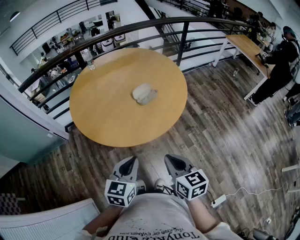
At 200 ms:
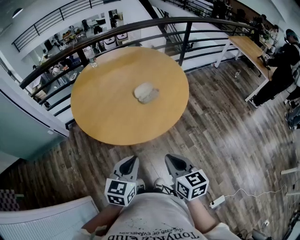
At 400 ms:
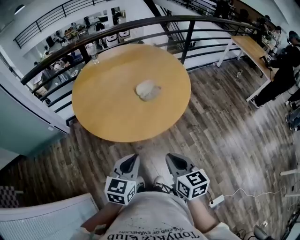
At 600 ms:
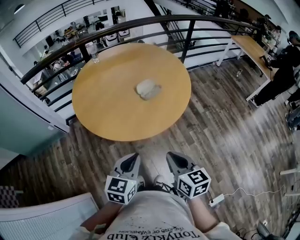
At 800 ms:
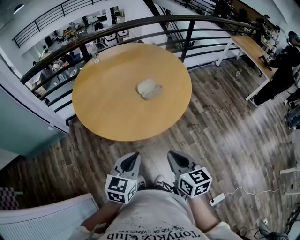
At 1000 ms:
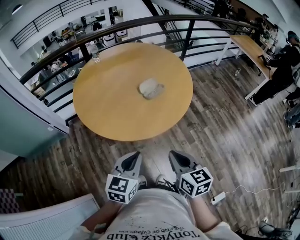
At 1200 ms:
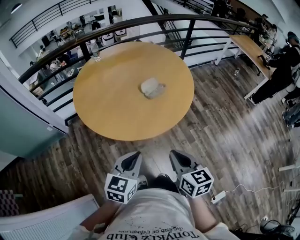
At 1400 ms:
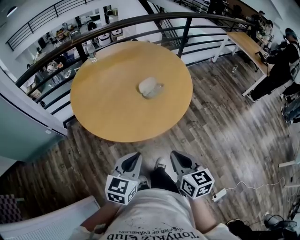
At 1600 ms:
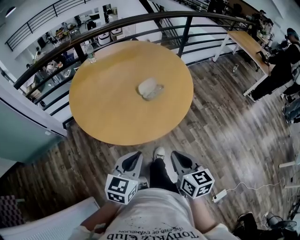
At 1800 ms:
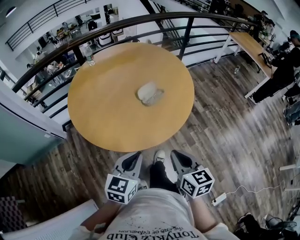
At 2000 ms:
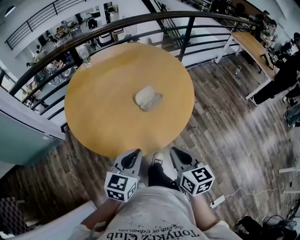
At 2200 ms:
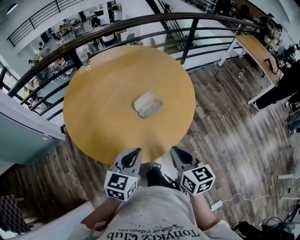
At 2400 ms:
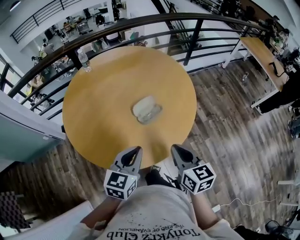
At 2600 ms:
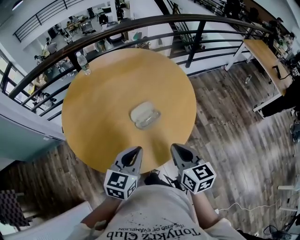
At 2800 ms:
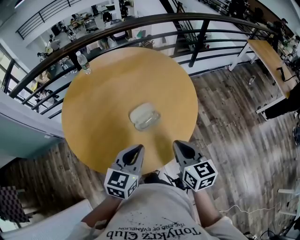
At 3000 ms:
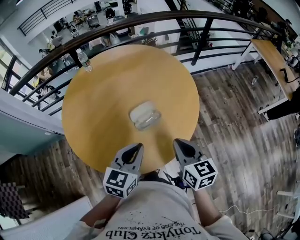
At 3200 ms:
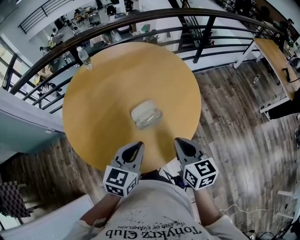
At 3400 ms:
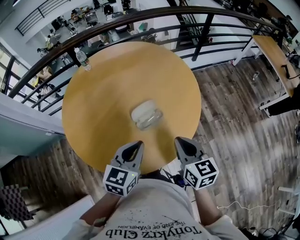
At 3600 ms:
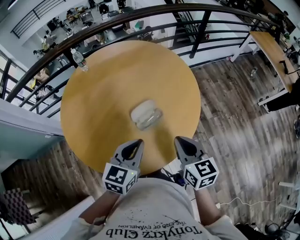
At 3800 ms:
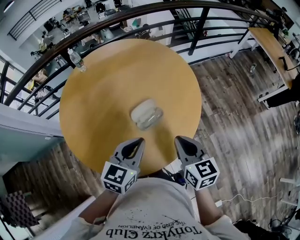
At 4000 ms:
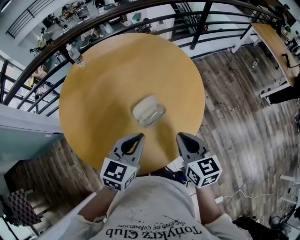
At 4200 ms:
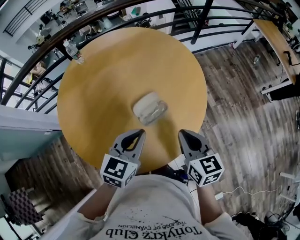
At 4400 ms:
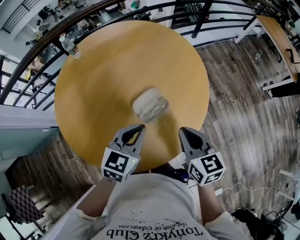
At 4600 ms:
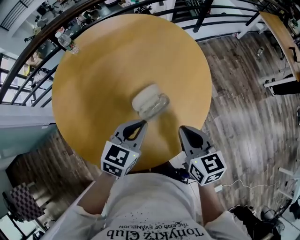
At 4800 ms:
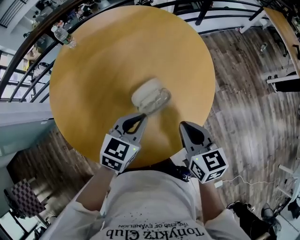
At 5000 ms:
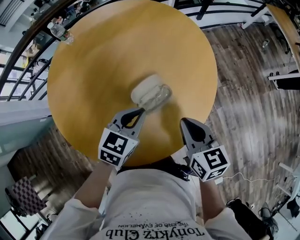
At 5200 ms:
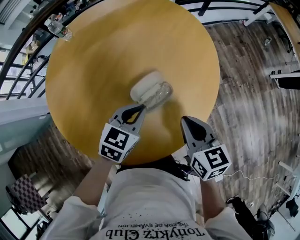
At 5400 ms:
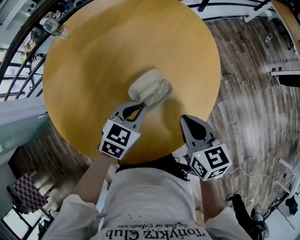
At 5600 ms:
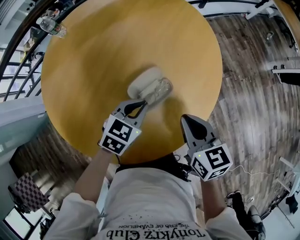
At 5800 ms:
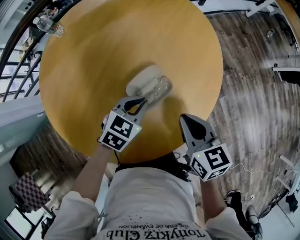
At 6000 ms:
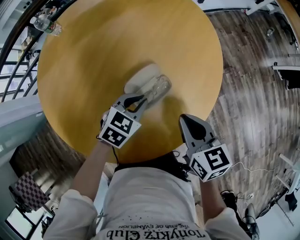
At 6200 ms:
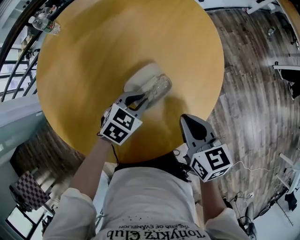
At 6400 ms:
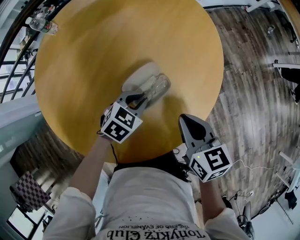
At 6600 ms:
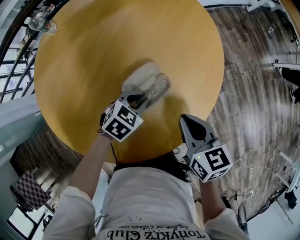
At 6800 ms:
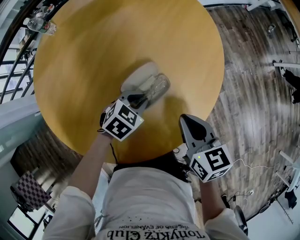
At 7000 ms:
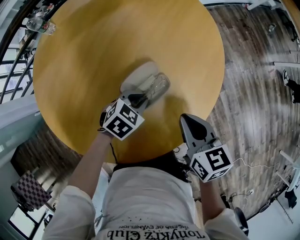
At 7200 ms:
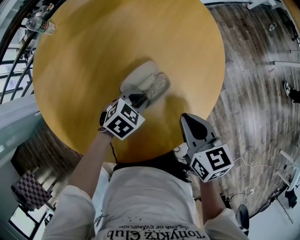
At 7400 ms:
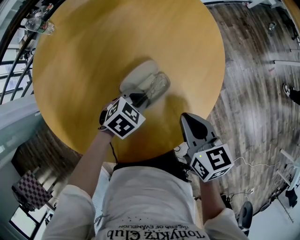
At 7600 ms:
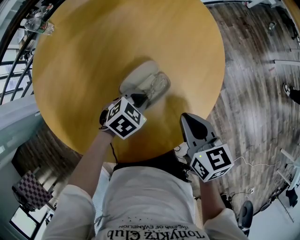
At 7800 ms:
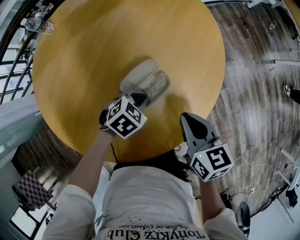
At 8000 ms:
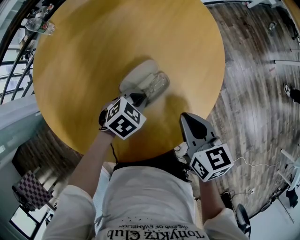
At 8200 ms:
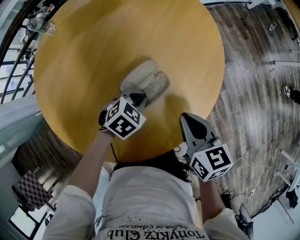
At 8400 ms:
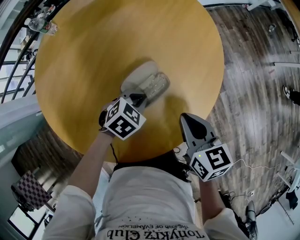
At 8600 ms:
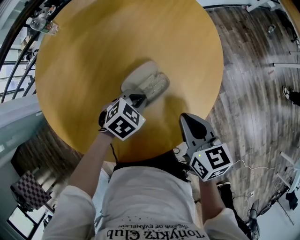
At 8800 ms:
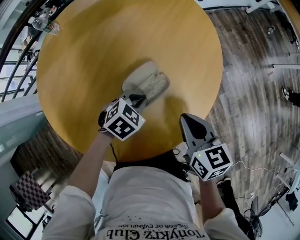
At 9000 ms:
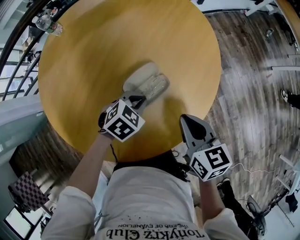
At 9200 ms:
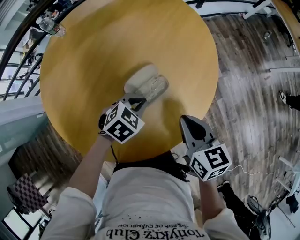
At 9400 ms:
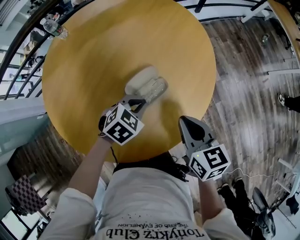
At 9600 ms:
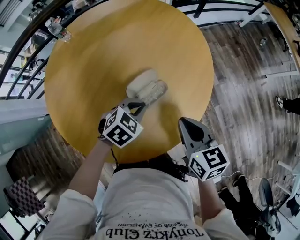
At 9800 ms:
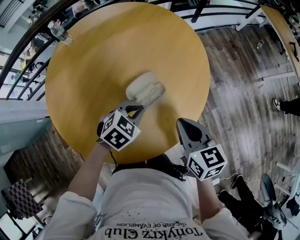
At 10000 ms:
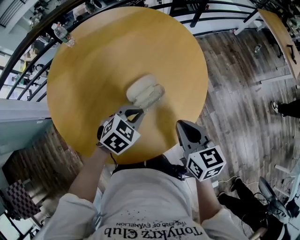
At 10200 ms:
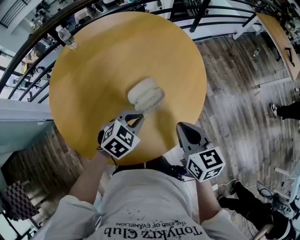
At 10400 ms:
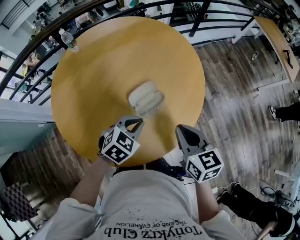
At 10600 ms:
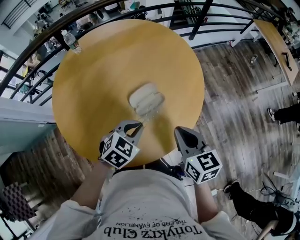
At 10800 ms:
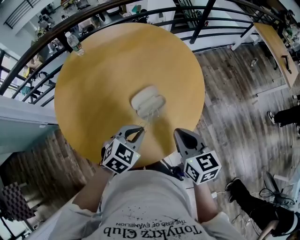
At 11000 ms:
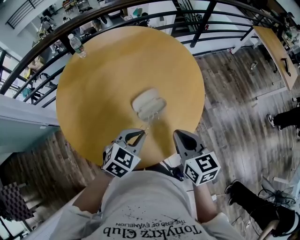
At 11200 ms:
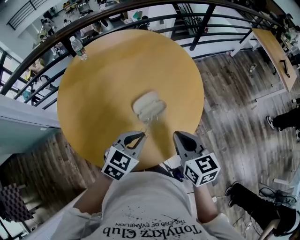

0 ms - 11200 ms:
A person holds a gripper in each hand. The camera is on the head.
0 ms - 1600 ms: There are only small adjustments of the grippers.
1600 ms - 3200 ms: Both grippers travel together forward, approximately 25 cm.
3200 ms - 4800 ms: The right gripper is displaced forward and downward by approximately 10 cm; the left gripper moves forward and downward, roughly 15 cm.
4800 ms - 6400 ms: The left gripper goes some 15 cm downward, and swivels roughly 20 degrees. The right gripper travels downward by roughly 5 cm.
6400 ms - 8000 ms: The grippers stay close to where they were, moving slightly.
8000 ms - 9600 ms: The grippers both shift upward by roughly 5 cm.
9600 ms - 11200 ms: The left gripper travels upward and backward by about 15 cm, and changes its angle by roughly 20 degrees; the right gripper shifts roughly 5 cm upward.

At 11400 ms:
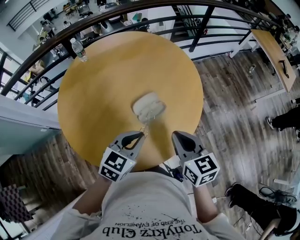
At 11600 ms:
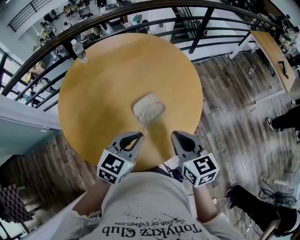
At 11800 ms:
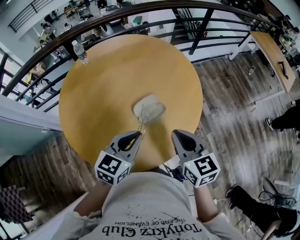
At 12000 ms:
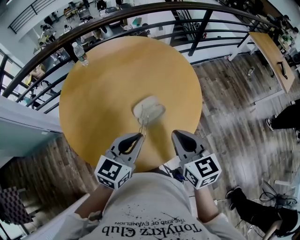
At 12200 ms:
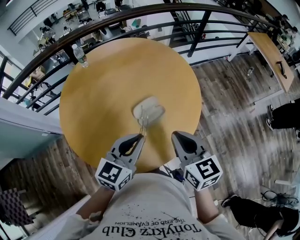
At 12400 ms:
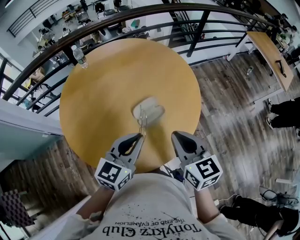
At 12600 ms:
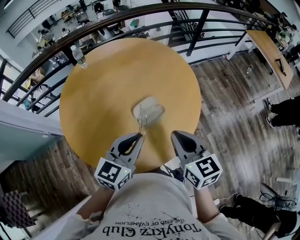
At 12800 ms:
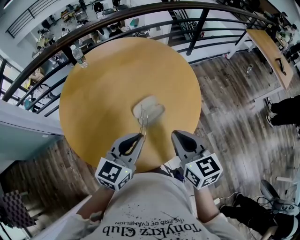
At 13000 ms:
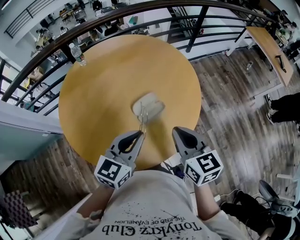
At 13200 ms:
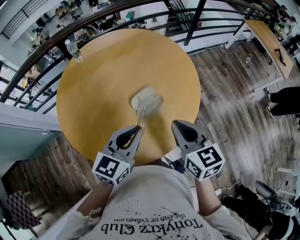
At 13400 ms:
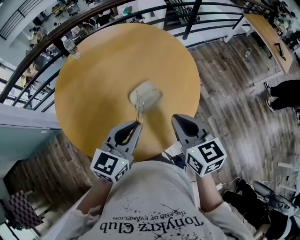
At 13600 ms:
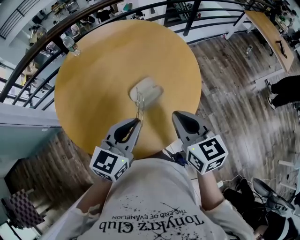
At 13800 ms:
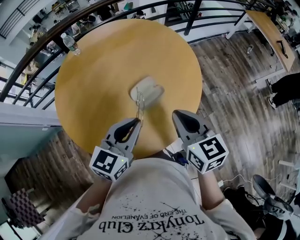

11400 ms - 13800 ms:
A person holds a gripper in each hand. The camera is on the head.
11400 ms - 12600 ms: The left gripper moves upward, about 5 cm.
12600 ms - 13800 ms: Both grippers stay put.

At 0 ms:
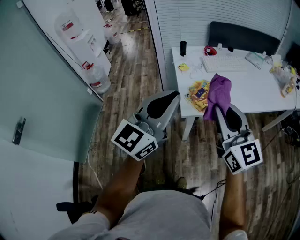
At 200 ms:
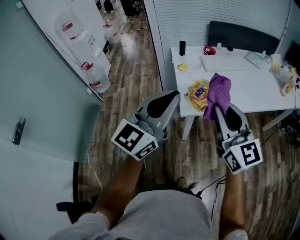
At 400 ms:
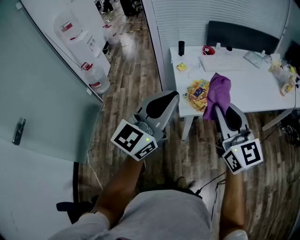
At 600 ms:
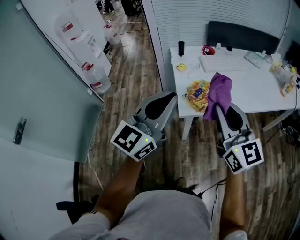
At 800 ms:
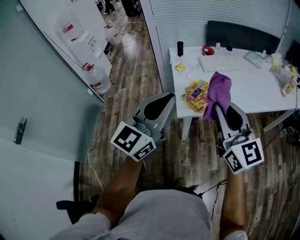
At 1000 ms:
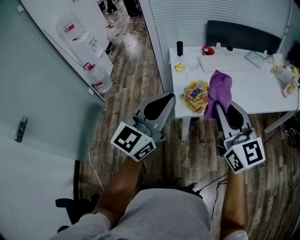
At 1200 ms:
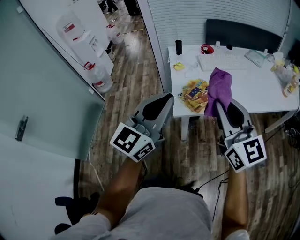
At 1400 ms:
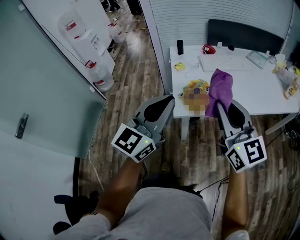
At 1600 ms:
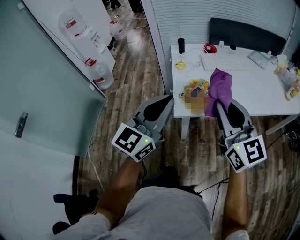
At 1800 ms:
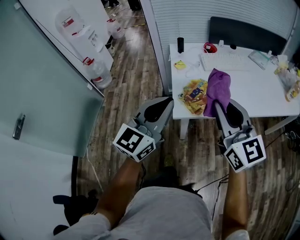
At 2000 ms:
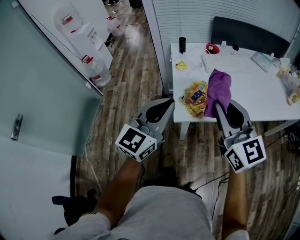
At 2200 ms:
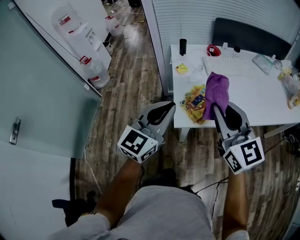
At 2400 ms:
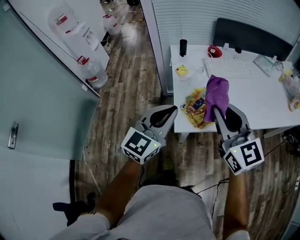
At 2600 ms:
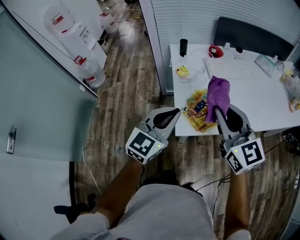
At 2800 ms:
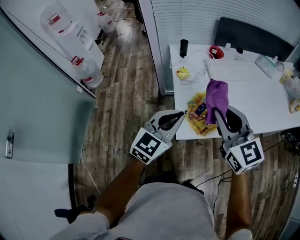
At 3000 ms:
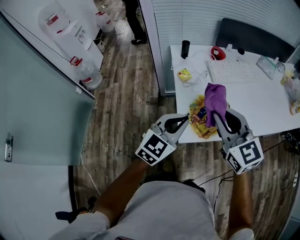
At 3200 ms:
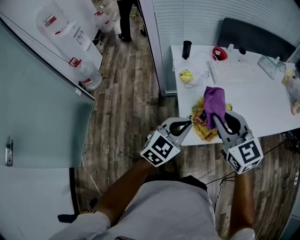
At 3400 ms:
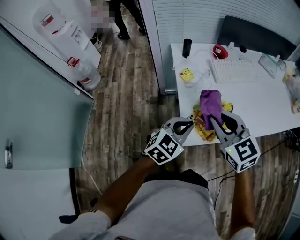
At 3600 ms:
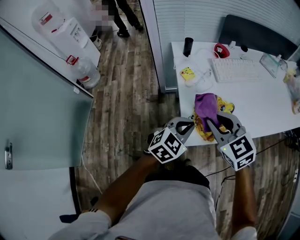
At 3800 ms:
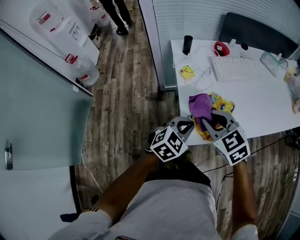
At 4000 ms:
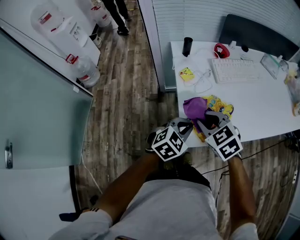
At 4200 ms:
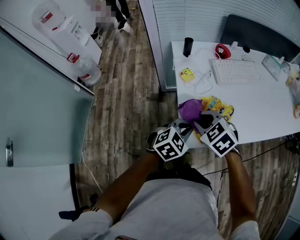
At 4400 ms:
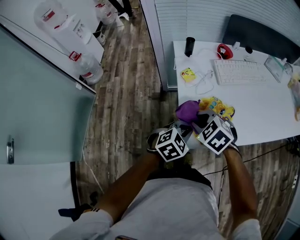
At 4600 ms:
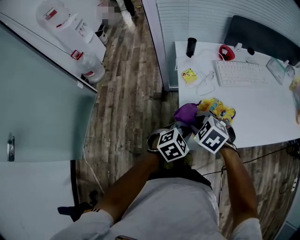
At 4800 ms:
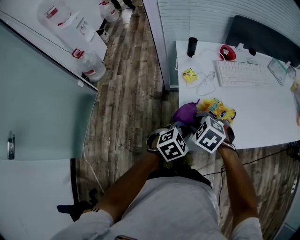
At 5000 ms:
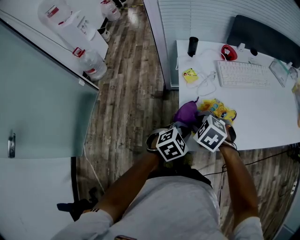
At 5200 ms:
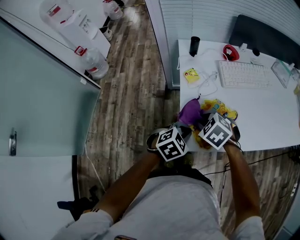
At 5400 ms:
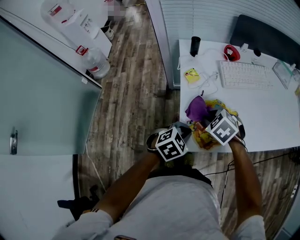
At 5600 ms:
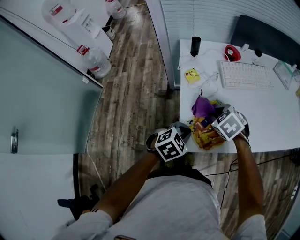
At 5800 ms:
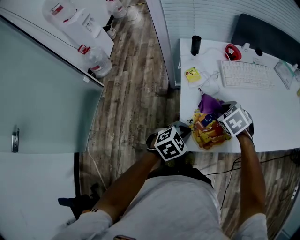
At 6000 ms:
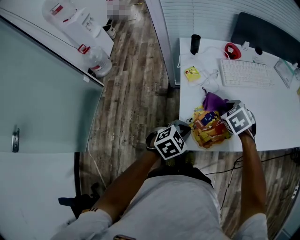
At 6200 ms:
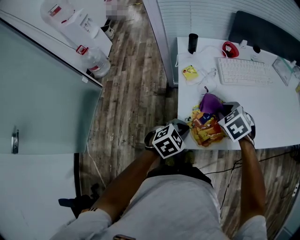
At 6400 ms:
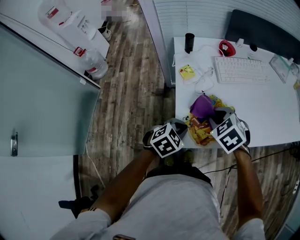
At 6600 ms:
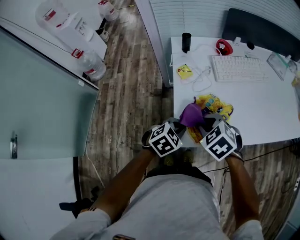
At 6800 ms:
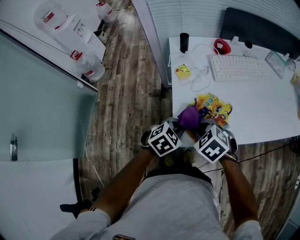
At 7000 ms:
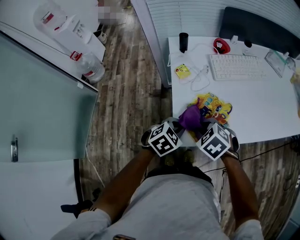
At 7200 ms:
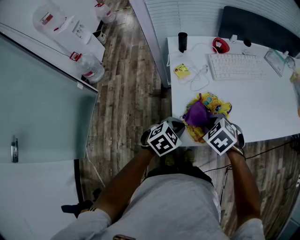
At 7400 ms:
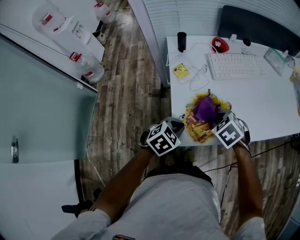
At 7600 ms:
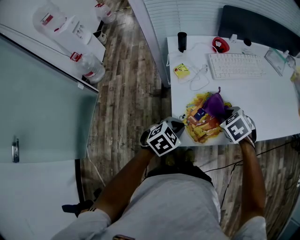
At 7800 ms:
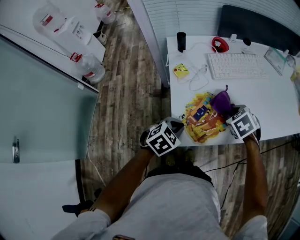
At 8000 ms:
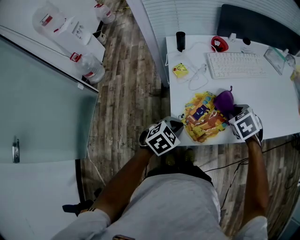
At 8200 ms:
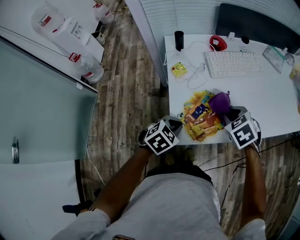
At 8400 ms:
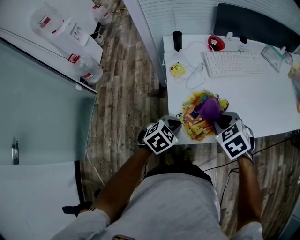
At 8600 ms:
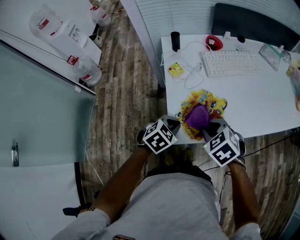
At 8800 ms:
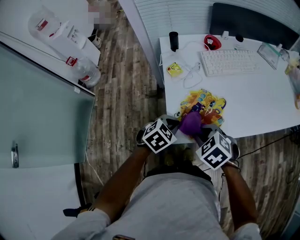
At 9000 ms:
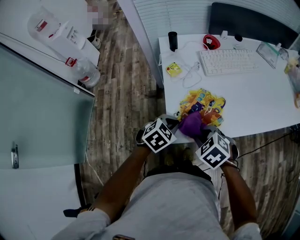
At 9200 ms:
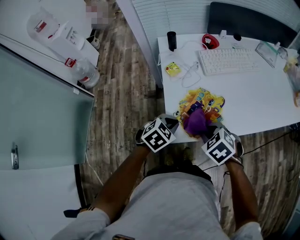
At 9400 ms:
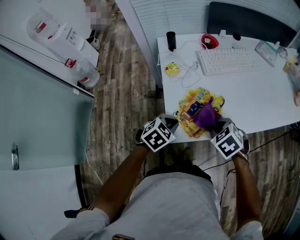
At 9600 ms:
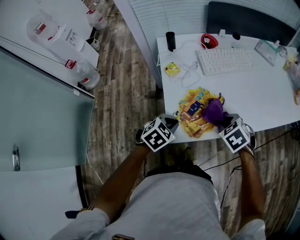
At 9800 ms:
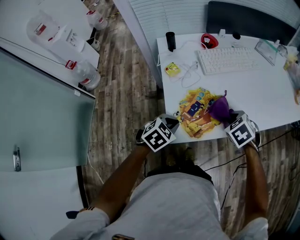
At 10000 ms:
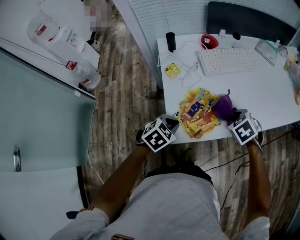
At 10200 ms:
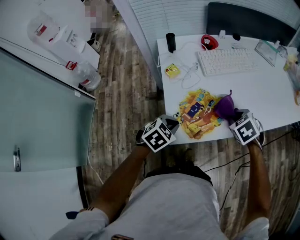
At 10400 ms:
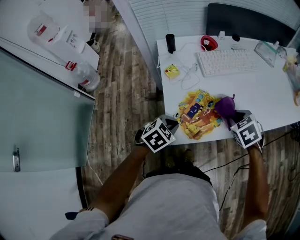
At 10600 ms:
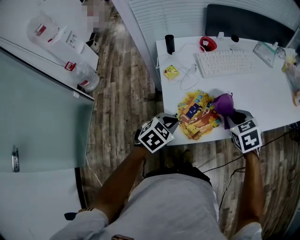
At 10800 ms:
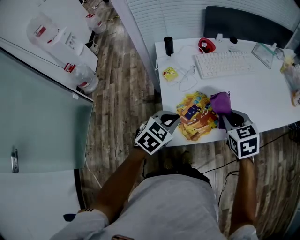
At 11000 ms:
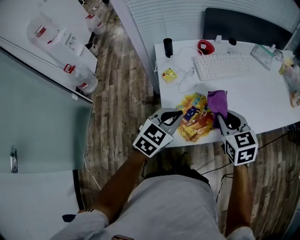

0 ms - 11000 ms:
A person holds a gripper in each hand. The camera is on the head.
0 ms - 1600 ms: The left gripper shifts by approximately 5 cm. The right gripper goes approximately 5 cm to the right.
1600 ms - 3200 ms: The left gripper moves downward and forward, about 25 cm, and changes its angle by approximately 30 degrees; the right gripper is displaced forward, downward and to the left by approximately 20 cm, and turns by about 20 degrees.
3200 ms - 4800 ms: The right gripper travels downward by some 20 cm, and angles its fingers downward, by approximately 50 degrees. The left gripper shifts about 10 cm downward, and swivels some 30 degrees.
4800 ms - 6200 ms: The right gripper moves to the right and forward, approximately 15 cm.
6200 ms - 7800 ms: The right gripper shifts roughly 10 cm to the right.
7800 ms - 9400 ms: The right gripper travels backward by approximately 10 cm.
9400 ms - 11000 ms: The grippers both shift upward by approximately 10 cm. The left gripper rotates roughly 30 degrees. The right gripper tips its fingers upward by roughly 30 degrees.
